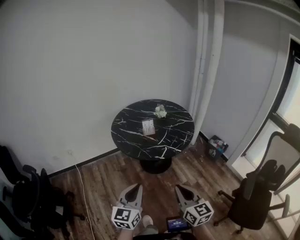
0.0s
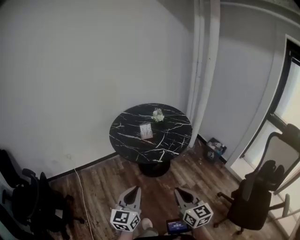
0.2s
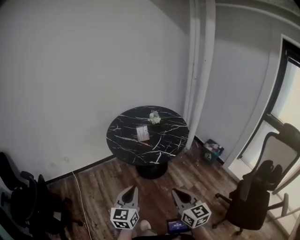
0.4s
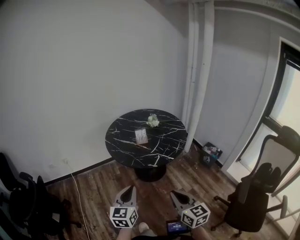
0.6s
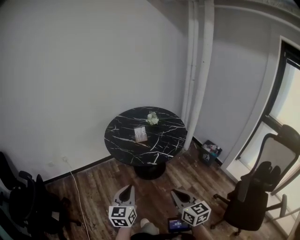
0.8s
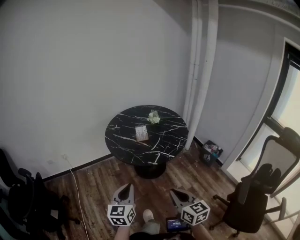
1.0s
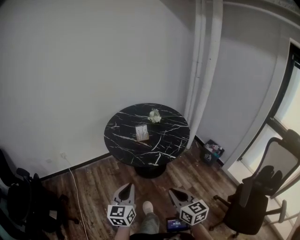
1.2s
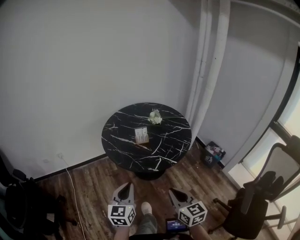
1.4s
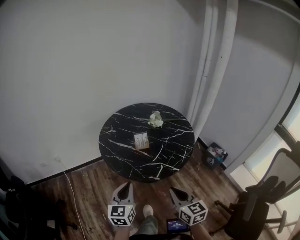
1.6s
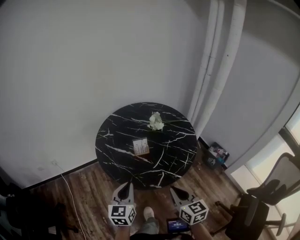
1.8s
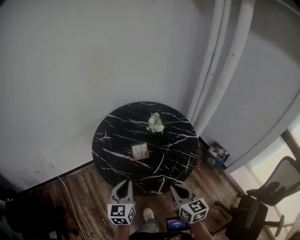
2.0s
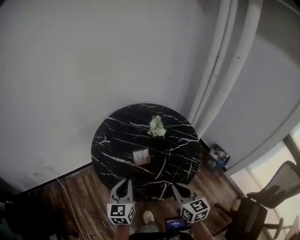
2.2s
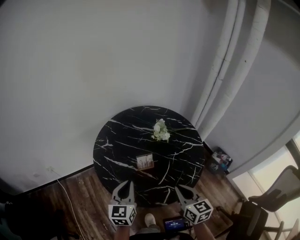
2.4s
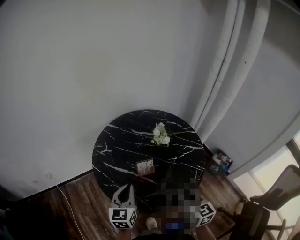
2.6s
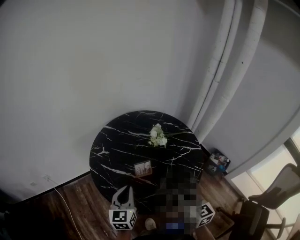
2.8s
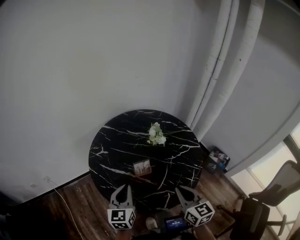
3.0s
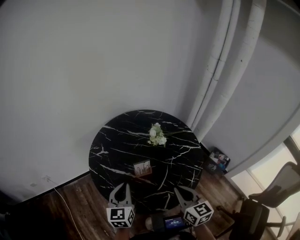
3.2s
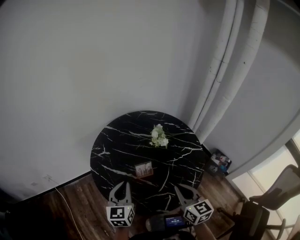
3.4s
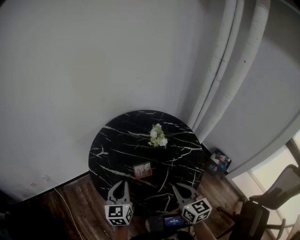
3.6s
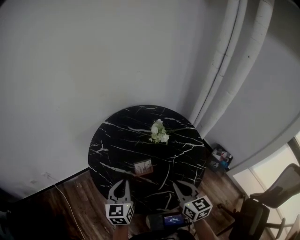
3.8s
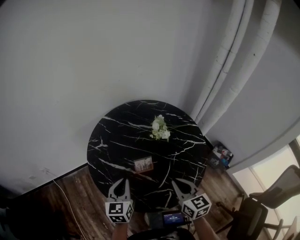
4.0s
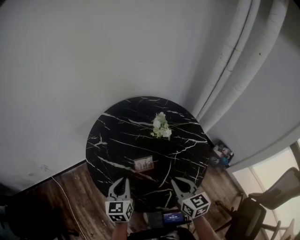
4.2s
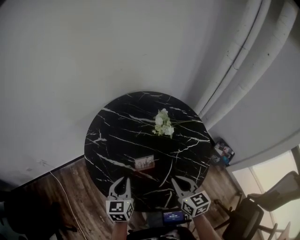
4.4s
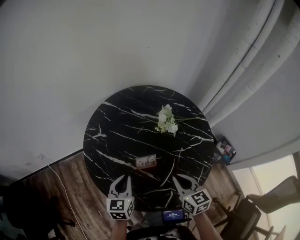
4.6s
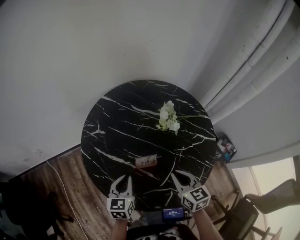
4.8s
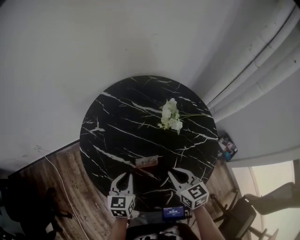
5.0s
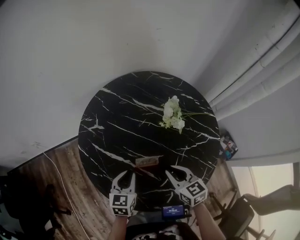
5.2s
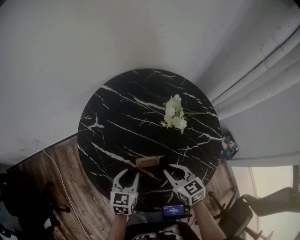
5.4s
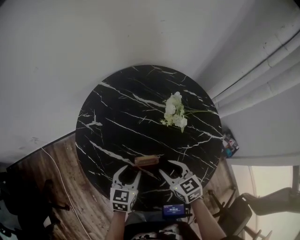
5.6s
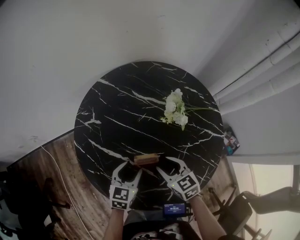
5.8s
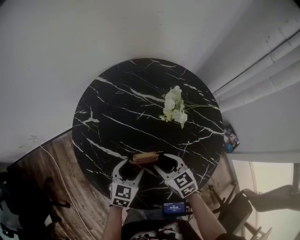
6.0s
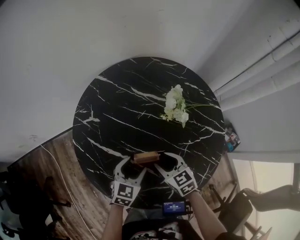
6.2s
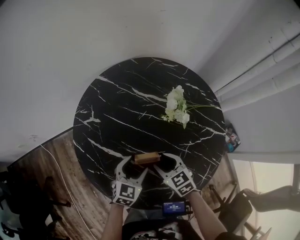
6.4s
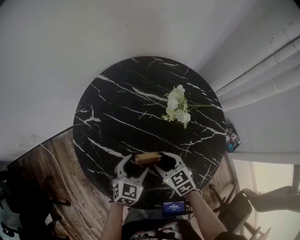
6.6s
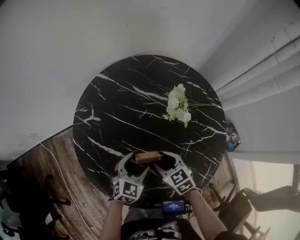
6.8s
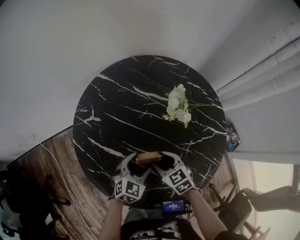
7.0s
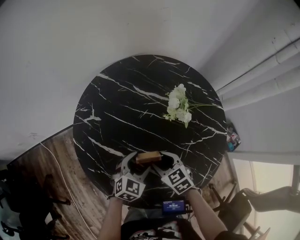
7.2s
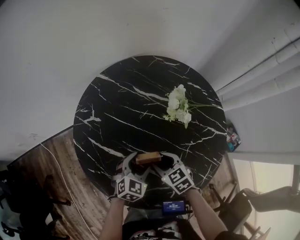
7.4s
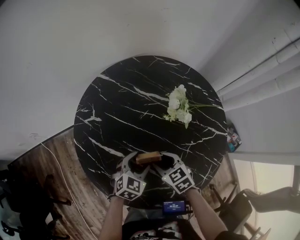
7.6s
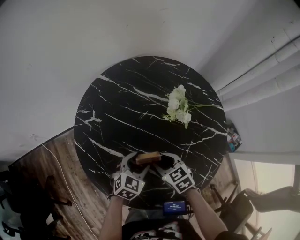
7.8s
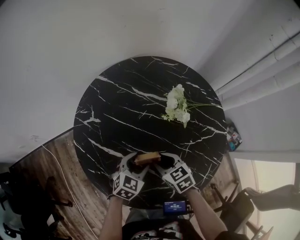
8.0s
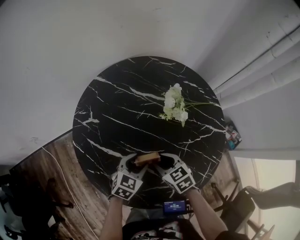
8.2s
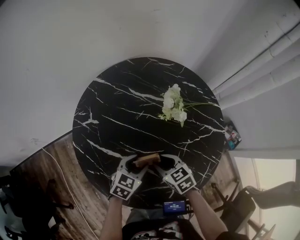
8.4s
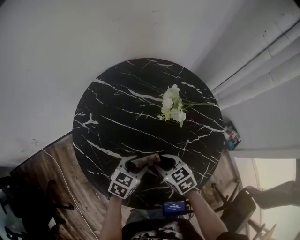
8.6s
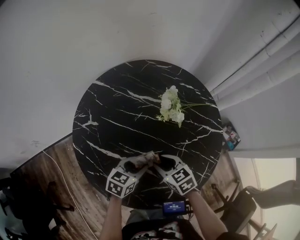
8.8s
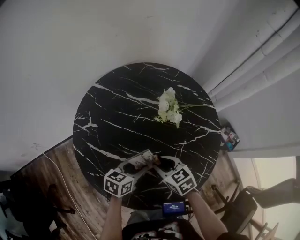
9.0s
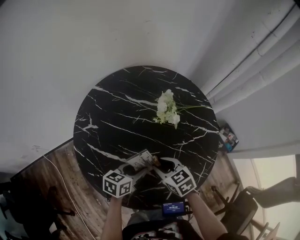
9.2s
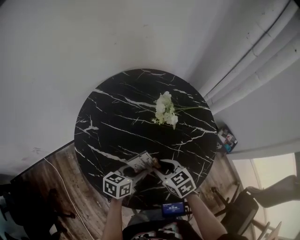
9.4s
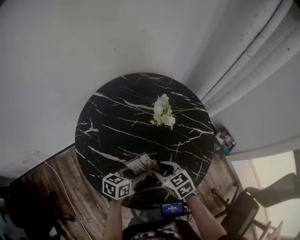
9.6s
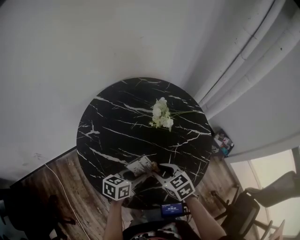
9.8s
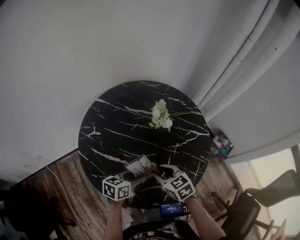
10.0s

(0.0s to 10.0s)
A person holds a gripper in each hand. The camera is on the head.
0.0s - 1.4s: The grippers both shift forward by approximately 10 cm.
1.4s - 2.8s: The two grippers go about 30 cm forward.
2.8s - 4.2s: The right gripper is displaced forward and downward by some 10 cm. The left gripper heads downward, covering approximately 5 cm.
4.2s - 5.8s: The left gripper heads downward and to the right, covering about 15 cm, and opens up; the right gripper moves downward and forward, roughly 15 cm, turns by about 30 degrees, and opens up.
5.8s - 7.2s: The left gripper changes its angle by approximately 20 degrees.
7.2s - 8.6s: The left gripper changes its angle by about 20 degrees.
8.6s - 10.0s: The right gripper heads upward, covering approximately 10 cm; the left gripper goes some 10 cm upward and backward, and changes its angle by some 20 degrees.

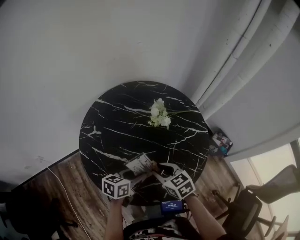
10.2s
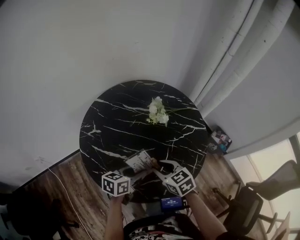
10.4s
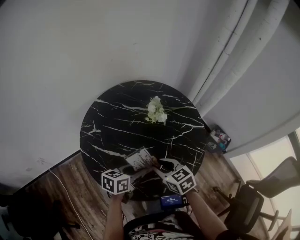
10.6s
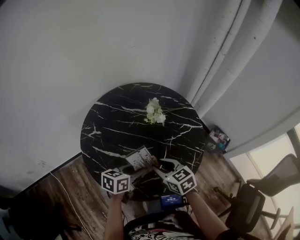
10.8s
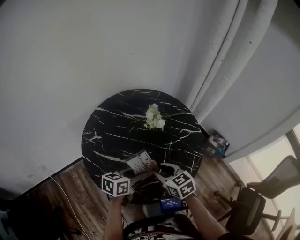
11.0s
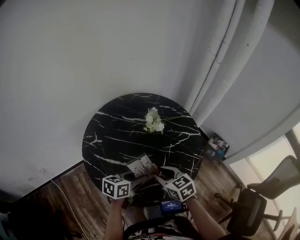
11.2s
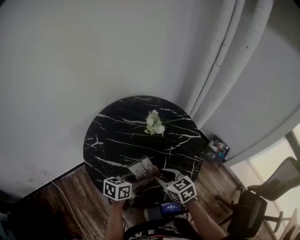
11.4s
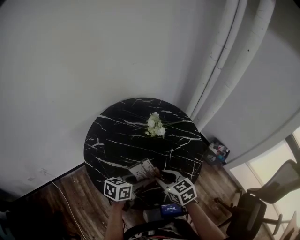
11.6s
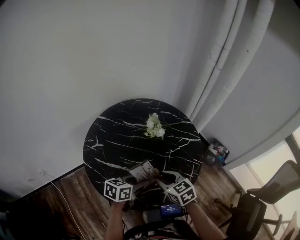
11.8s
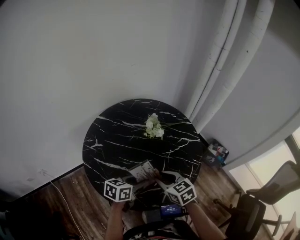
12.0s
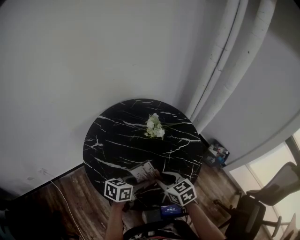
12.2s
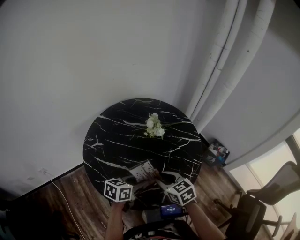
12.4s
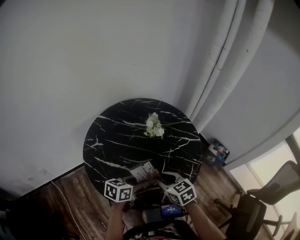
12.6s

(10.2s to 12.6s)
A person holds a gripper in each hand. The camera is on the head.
10.2s - 11.4s: The right gripper ends up about 5 cm from where it was. Meanwhile the left gripper shifts by approximately 5 cm.
11.4s - 12.6s: The two grippers keep their place.

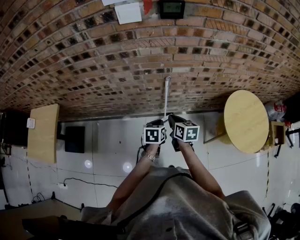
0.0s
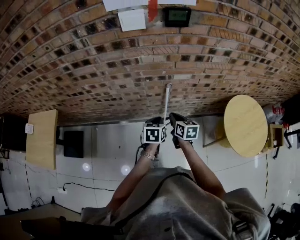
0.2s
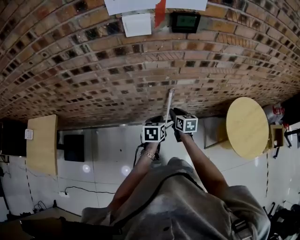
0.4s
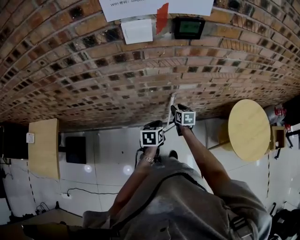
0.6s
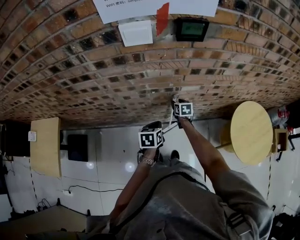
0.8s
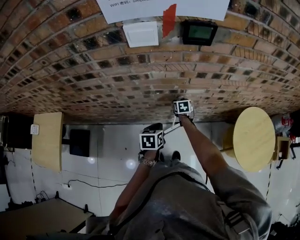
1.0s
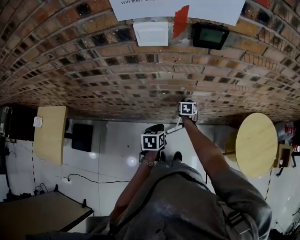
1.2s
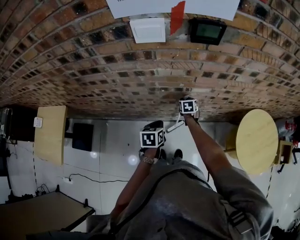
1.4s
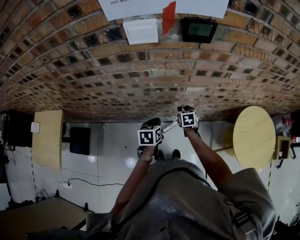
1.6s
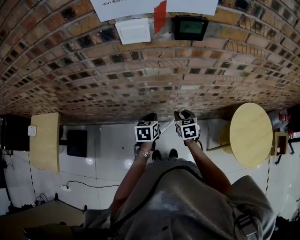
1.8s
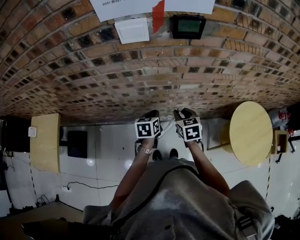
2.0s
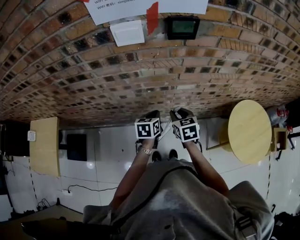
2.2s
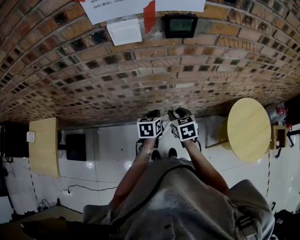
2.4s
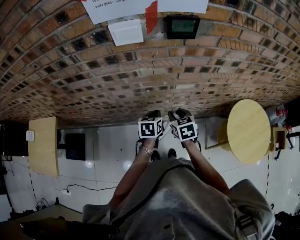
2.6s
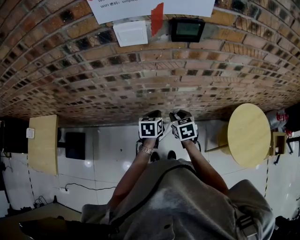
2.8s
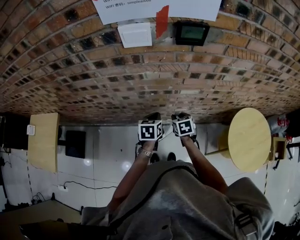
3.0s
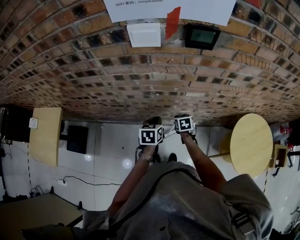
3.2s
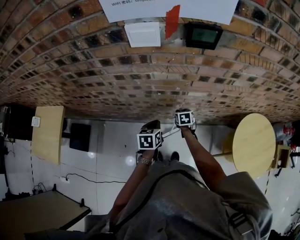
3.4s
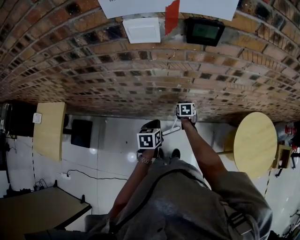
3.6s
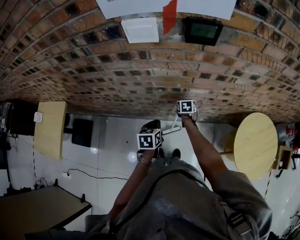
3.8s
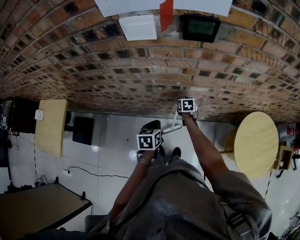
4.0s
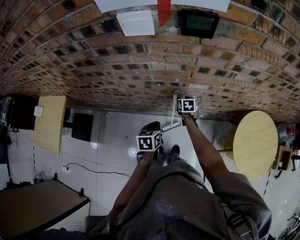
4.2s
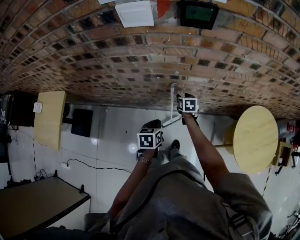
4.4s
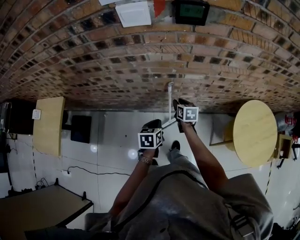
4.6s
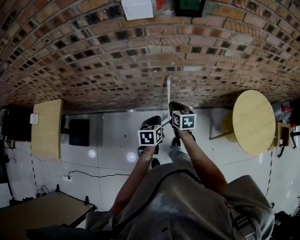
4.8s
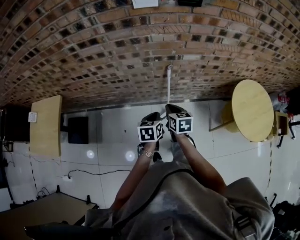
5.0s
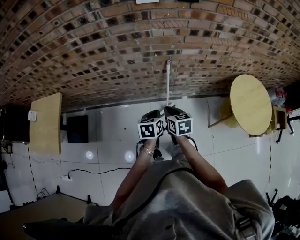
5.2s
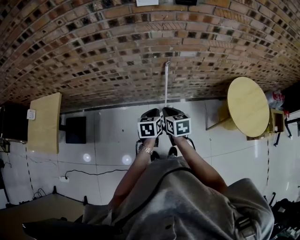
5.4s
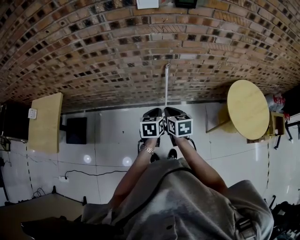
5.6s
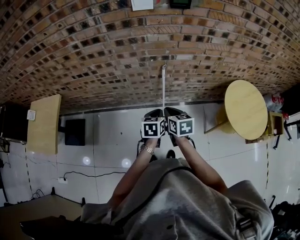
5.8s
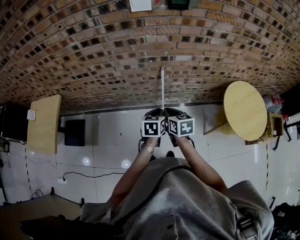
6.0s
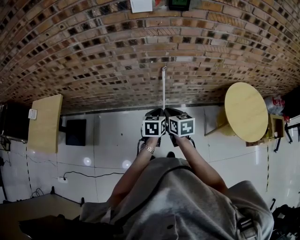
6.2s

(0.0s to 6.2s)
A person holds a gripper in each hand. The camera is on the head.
0.0s - 1.6s: The right gripper travels forward and downward by about 25 cm, rotates some 30 degrees, and opens up; the left gripper travels forward and to the left by roughly 15 cm.
1.6s - 3.2s: The right gripper goes upward and returns, about 15 cm each way.
3.2s - 4.6s: The left gripper goes some 10 cm backward; the right gripper moves upward, roughly 5 cm, and goes forward and returns, roughly 10 cm each way.
4.6s - 6.2s: The right gripper goes some 25 cm backward and upward, and closes; the left gripper shifts roughly 15 cm backward and upward.

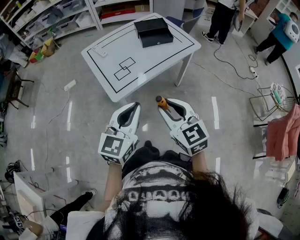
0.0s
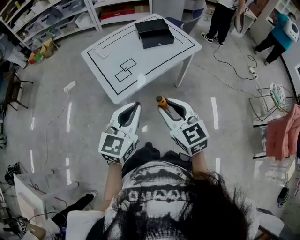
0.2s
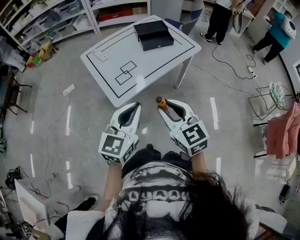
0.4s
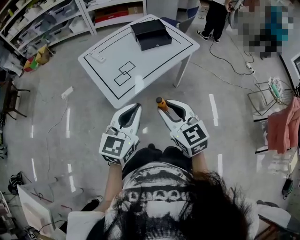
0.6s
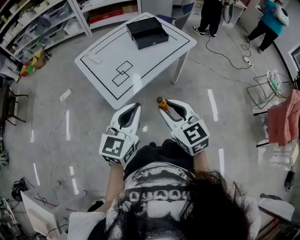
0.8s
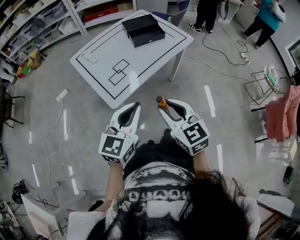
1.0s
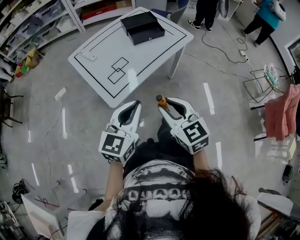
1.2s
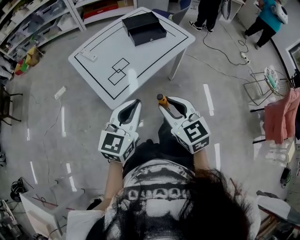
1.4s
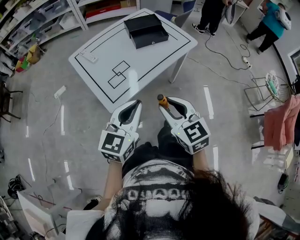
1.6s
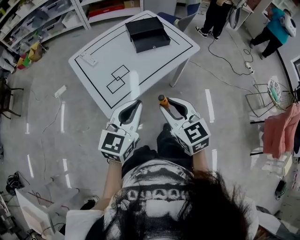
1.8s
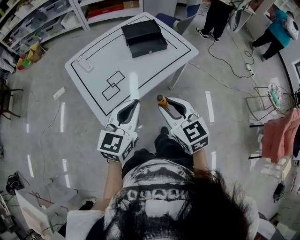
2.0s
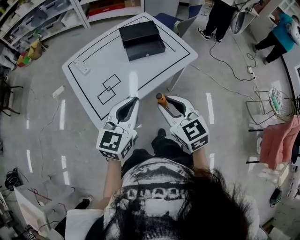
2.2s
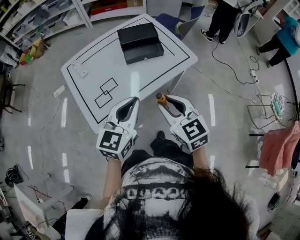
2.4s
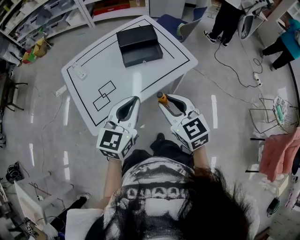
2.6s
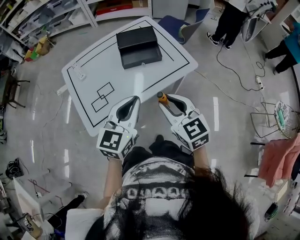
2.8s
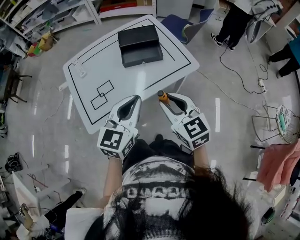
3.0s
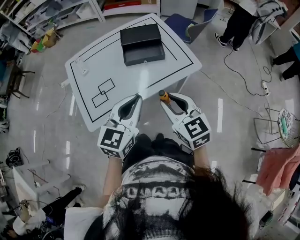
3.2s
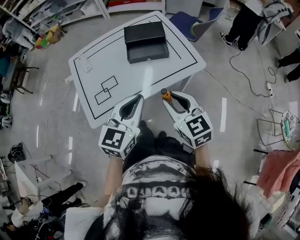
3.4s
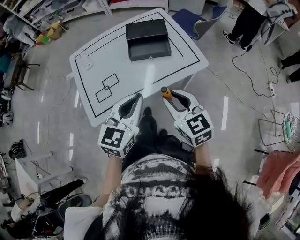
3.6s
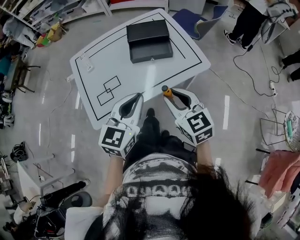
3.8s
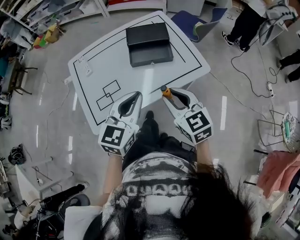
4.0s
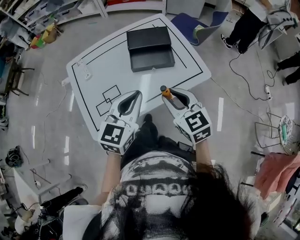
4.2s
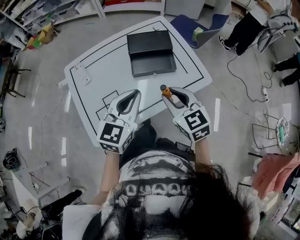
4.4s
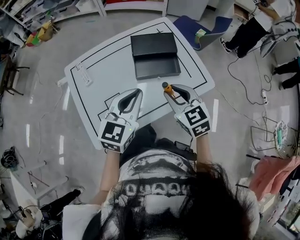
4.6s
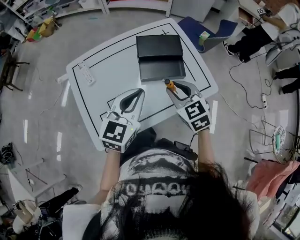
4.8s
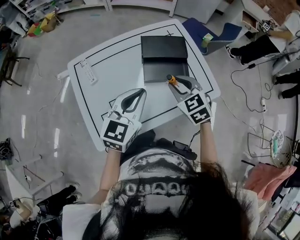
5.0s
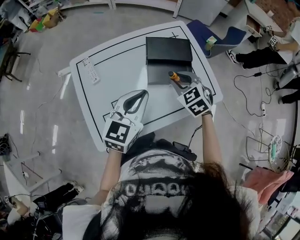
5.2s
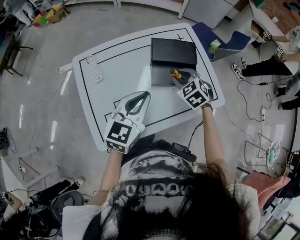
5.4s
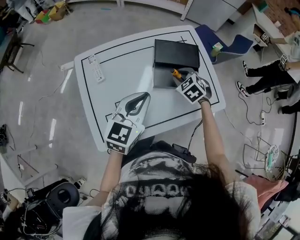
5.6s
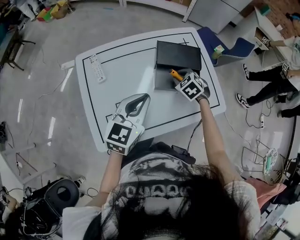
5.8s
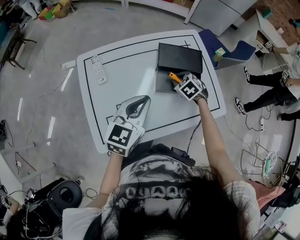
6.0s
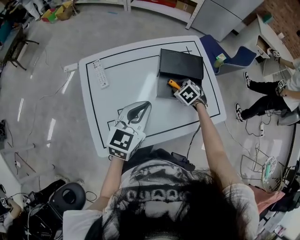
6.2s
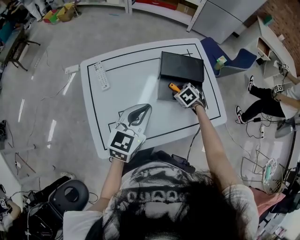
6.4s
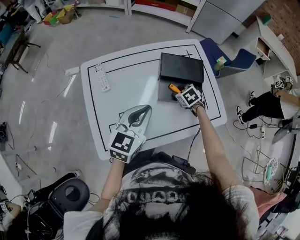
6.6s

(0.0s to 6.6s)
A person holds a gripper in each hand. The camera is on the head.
0.0s - 1.6s: The two grippers go roughly 10 cm forward.
1.6s - 3.2s: The right gripper goes roughly 30 cm forward and to the right; the left gripper moves to the right and forward, roughly 30 cm.
3.2s - 5.0s: The left gripper travels forward and to the left by some 25 cm, while the right gripper is displaced forward by roughly 25 cm, and swivels approximately 20 degrees.
5.0s - 6.6s: The left gripper is displaced to the left by approximately 5 cm. The right gripper goes roughly 20 cm downward and forward, and changes its angle by some 30 degrees.
